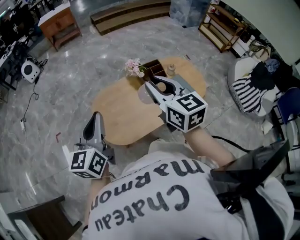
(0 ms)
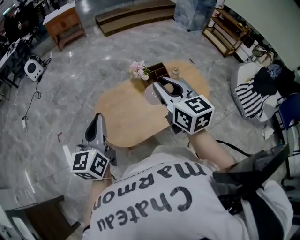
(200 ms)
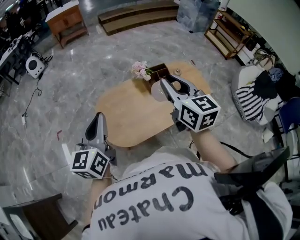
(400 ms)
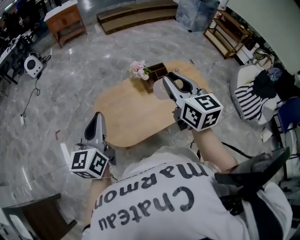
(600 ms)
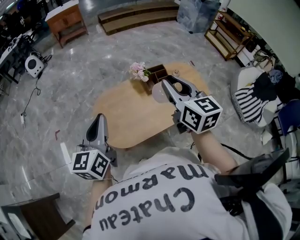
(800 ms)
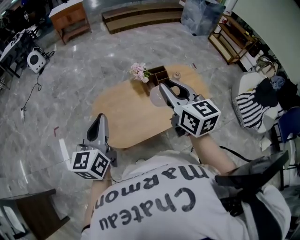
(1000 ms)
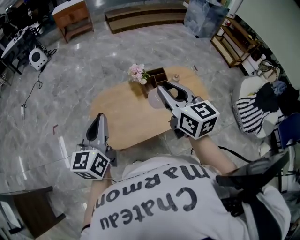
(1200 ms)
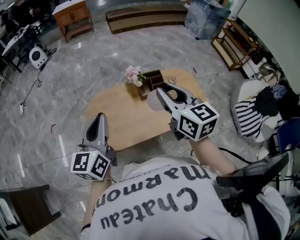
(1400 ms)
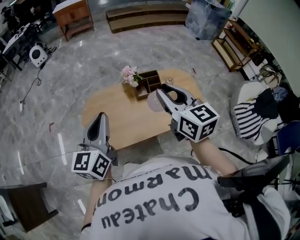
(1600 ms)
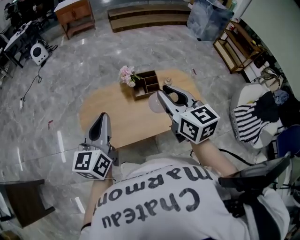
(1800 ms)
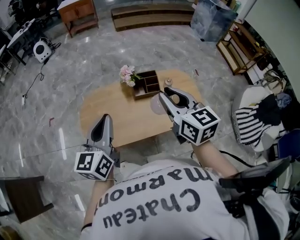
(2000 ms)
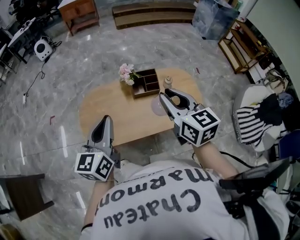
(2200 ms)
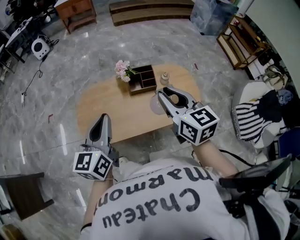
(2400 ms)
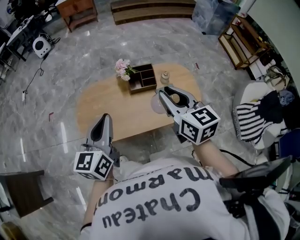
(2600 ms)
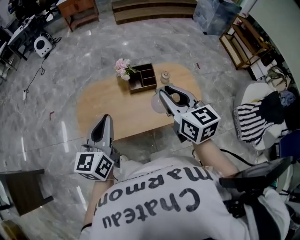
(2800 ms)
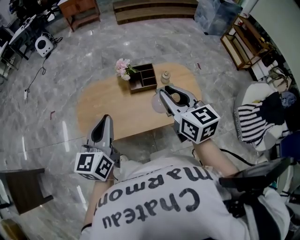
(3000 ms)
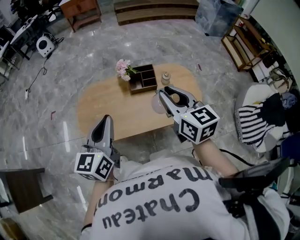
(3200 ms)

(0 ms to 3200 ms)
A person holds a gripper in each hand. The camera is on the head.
0 ms - 1600 ms: Both grippers move to the right, roughly 10 cm.
1600 ms - 3200 ms: Both grippers travel together to the right, roughly 10 cm.

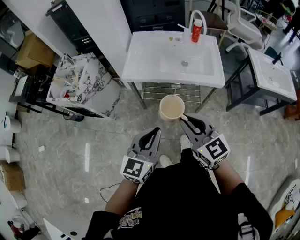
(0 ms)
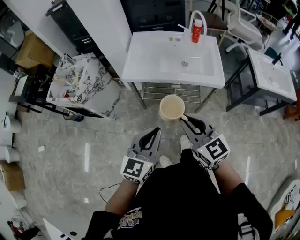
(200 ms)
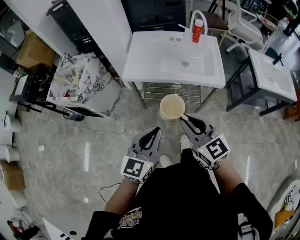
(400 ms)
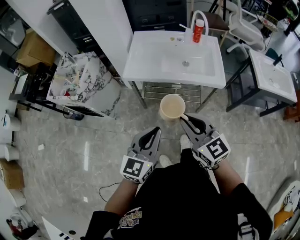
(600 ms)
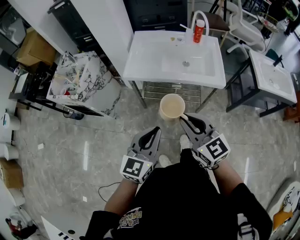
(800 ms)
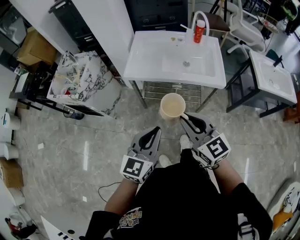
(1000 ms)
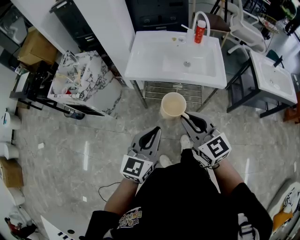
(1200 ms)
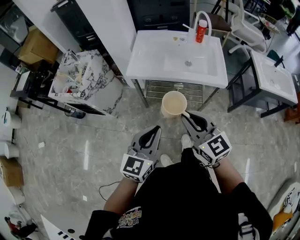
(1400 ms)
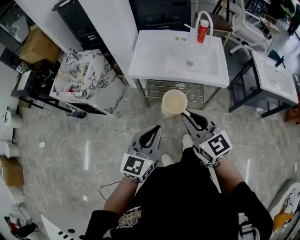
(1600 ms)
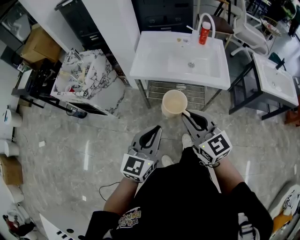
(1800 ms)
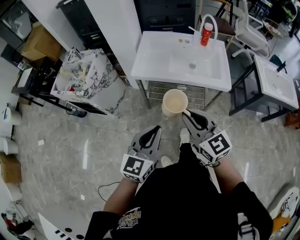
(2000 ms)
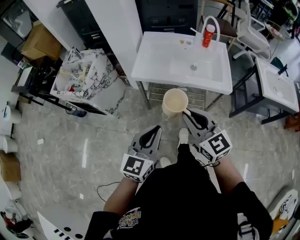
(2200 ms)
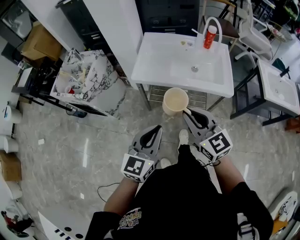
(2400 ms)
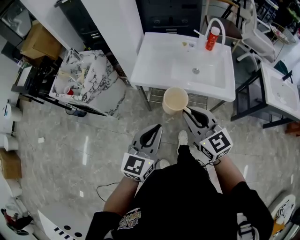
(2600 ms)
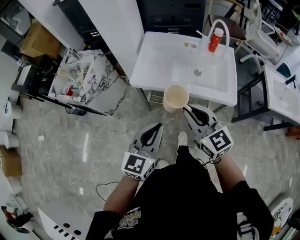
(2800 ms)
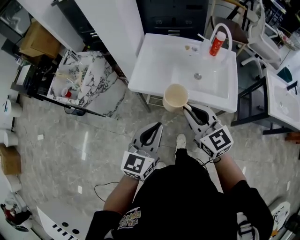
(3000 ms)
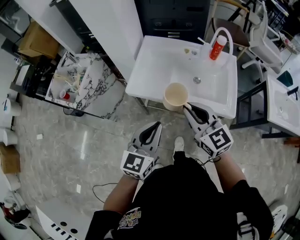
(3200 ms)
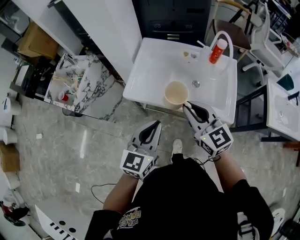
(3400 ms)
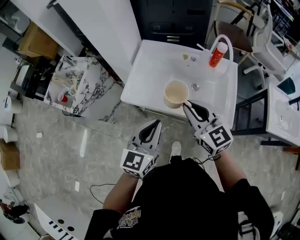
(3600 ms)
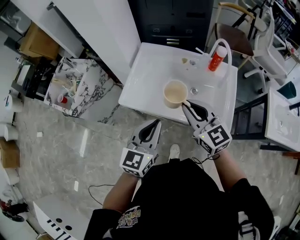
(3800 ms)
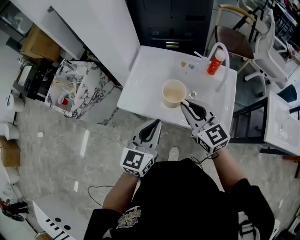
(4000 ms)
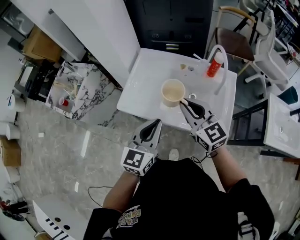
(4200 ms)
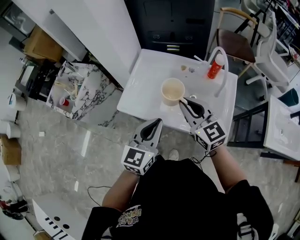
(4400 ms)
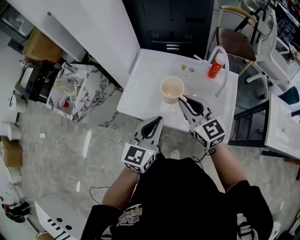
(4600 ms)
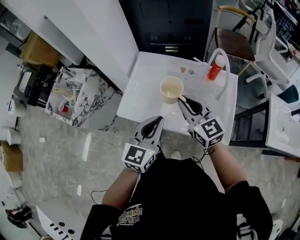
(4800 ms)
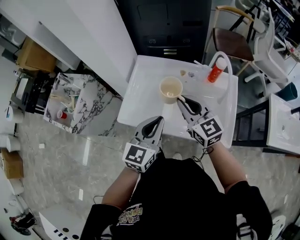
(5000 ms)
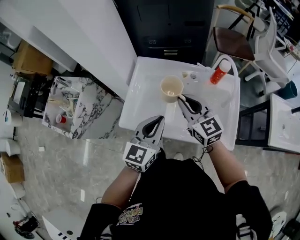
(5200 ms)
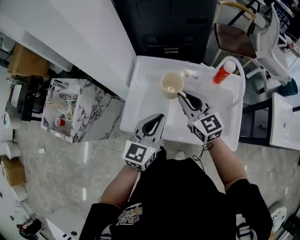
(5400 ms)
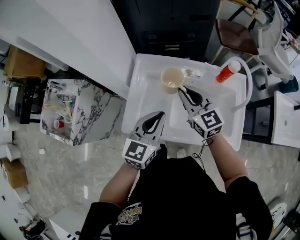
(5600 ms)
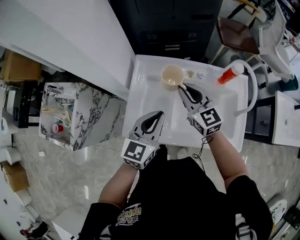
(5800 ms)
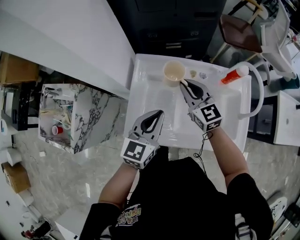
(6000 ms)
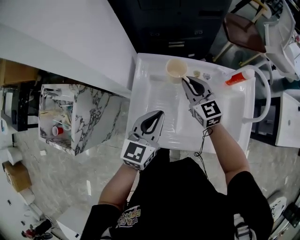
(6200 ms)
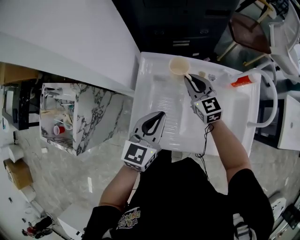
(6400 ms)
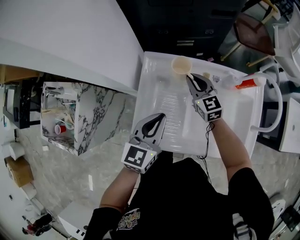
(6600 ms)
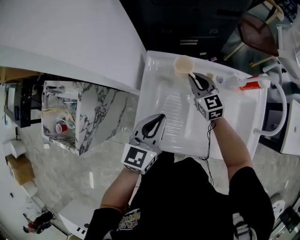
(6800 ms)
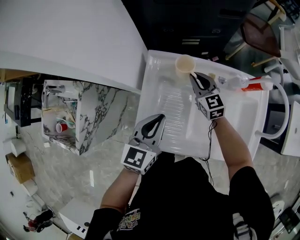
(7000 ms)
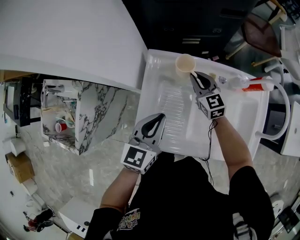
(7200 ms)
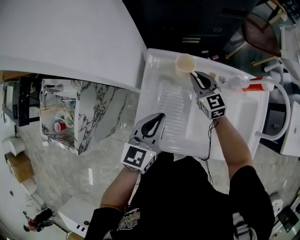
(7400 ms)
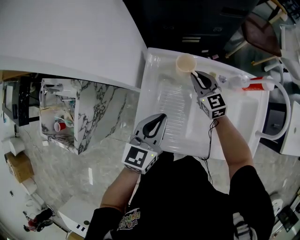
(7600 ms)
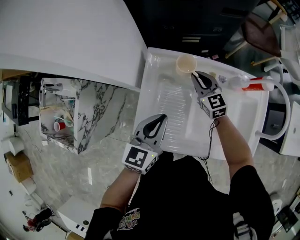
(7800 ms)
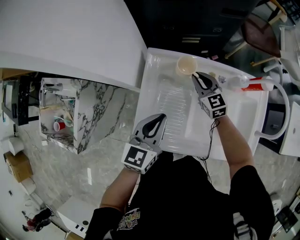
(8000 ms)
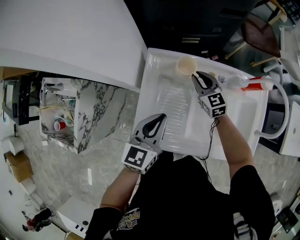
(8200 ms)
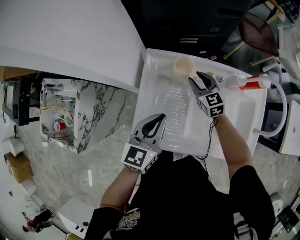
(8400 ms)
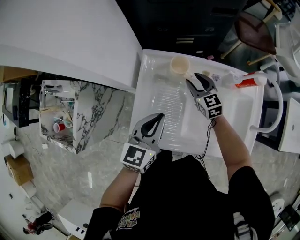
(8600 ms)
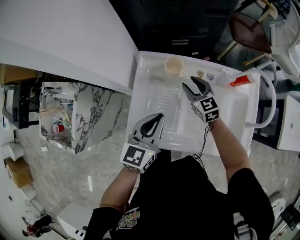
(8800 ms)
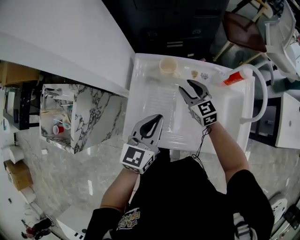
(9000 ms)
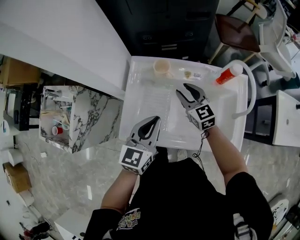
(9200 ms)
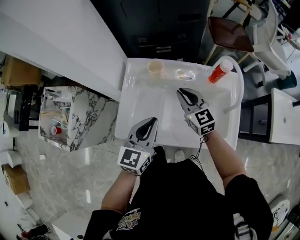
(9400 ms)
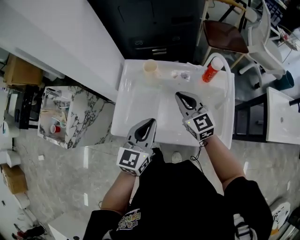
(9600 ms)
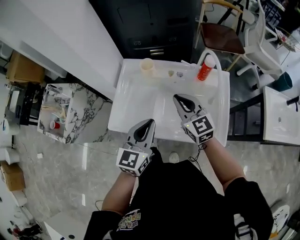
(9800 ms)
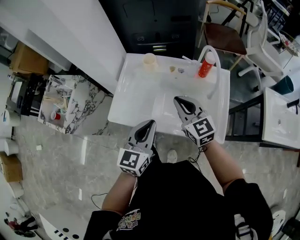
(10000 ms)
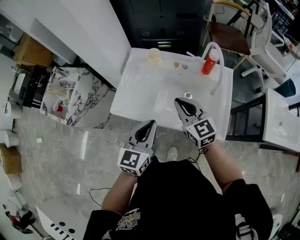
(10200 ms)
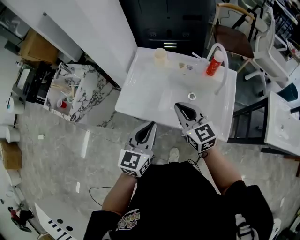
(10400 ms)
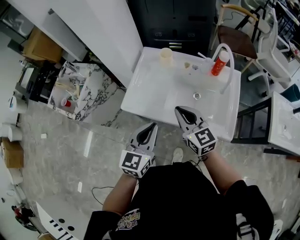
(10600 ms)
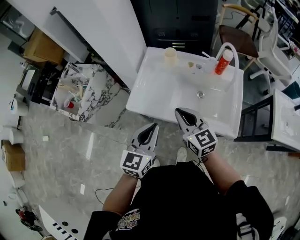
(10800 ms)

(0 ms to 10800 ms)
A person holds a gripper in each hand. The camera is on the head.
0 ms - 1600 ms: The grippers stay close to where they were, moving slightly.
1600 ms - 3000 ms: The grippers both shift forward by some 15 cm.
3000 ms - 4600 ms: Both grippers travel together forward and to the right, roughly 20 cm.
4600 ms - 6200 ms: The left gripper travels forward and to the left by some 20 cm. Meanwhile the right gripper goes roughly 30 cm forward and downward.
6200 ms - 7800 ms: The right gripper shifts roughly 10 cm downward and forward. Meanwhile the left gripper ends up about 5 cm from where it was.
7800 ms - 9200 ms: The left gripper shifts approximately 10 cm to the right and backward, while the right gripper shifts approximately 10 cm backward and upward, and opens.
9200 ms - 10800 ms: The right gripper travels backward and upward by approximately 30 cm, and closes up. The left gripper moves backward, some 20 cm.

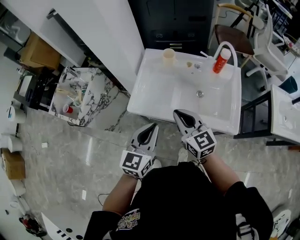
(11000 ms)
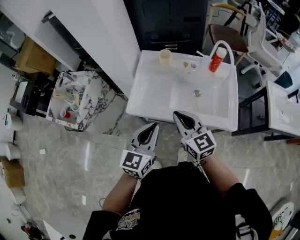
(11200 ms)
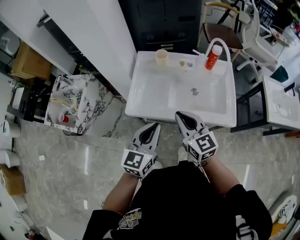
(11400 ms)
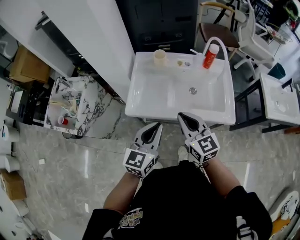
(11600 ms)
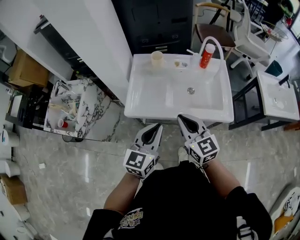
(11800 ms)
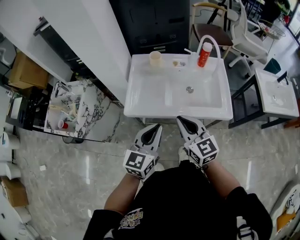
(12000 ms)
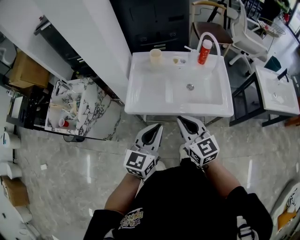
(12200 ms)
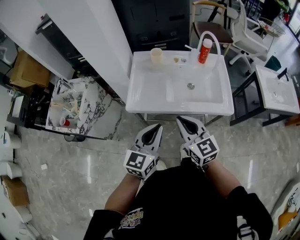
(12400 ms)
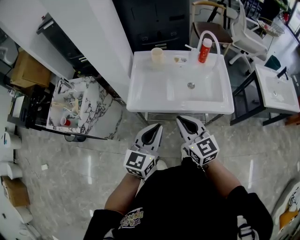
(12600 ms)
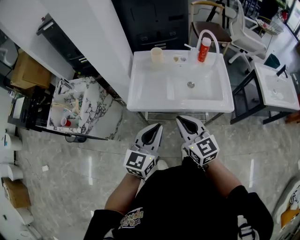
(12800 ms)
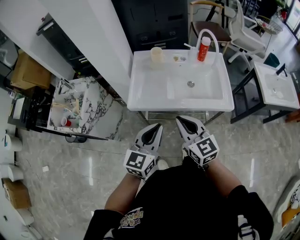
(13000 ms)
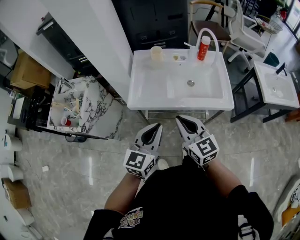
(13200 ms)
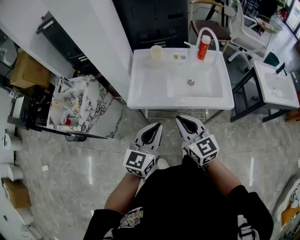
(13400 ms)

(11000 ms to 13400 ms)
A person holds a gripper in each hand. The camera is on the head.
11000 ms - 12200 ms: The right gripper goes approximately 10 cm backward; the left gripper shifts by some 5 cm.
12200 ms - 13400 ms: The grippers make only small movements.

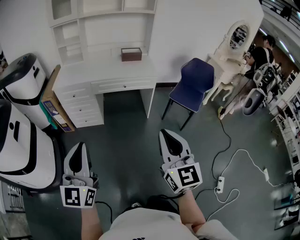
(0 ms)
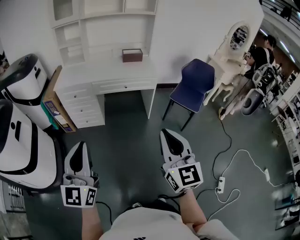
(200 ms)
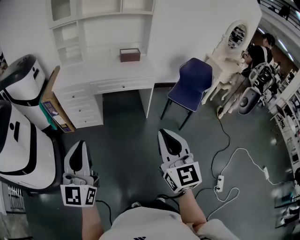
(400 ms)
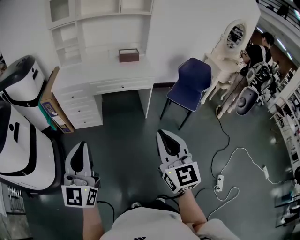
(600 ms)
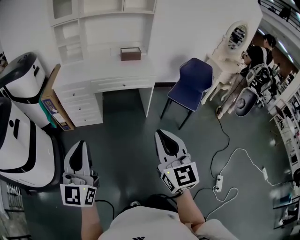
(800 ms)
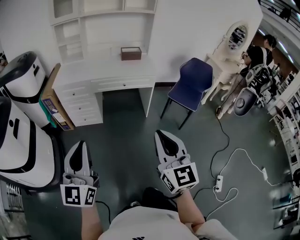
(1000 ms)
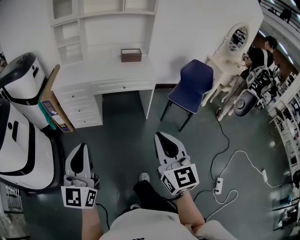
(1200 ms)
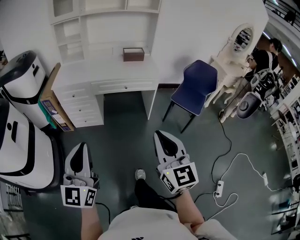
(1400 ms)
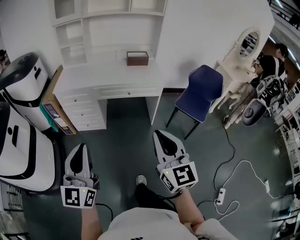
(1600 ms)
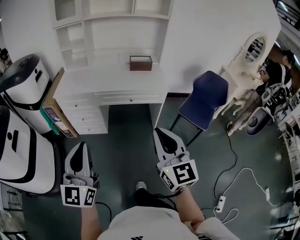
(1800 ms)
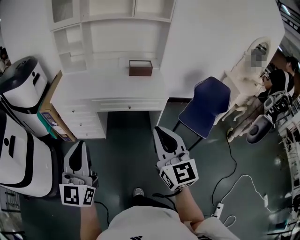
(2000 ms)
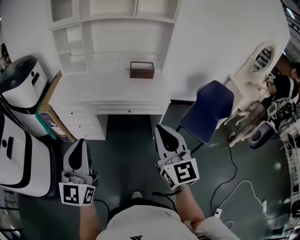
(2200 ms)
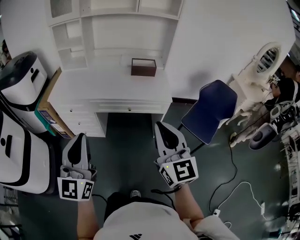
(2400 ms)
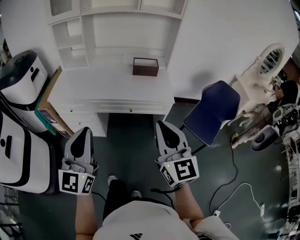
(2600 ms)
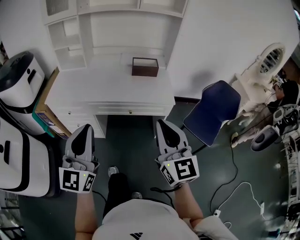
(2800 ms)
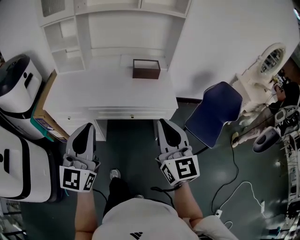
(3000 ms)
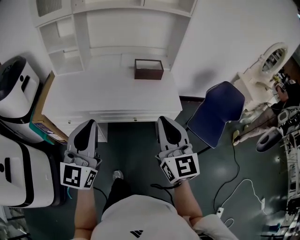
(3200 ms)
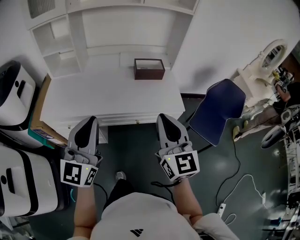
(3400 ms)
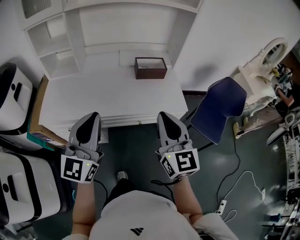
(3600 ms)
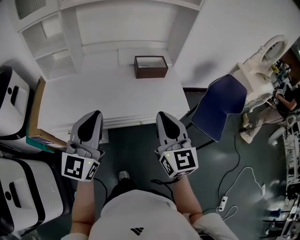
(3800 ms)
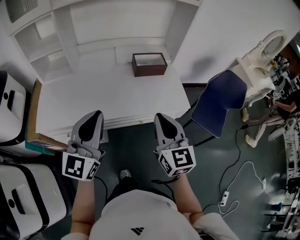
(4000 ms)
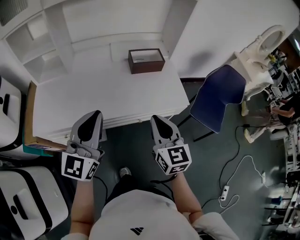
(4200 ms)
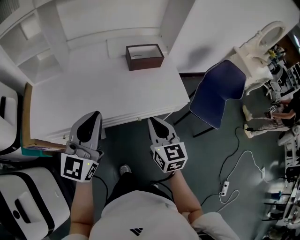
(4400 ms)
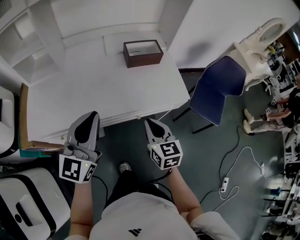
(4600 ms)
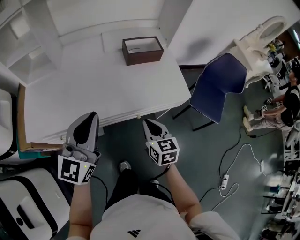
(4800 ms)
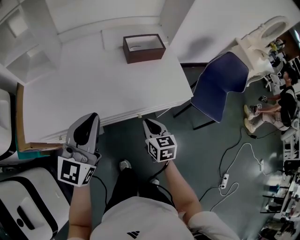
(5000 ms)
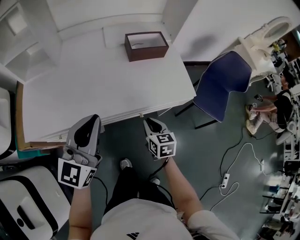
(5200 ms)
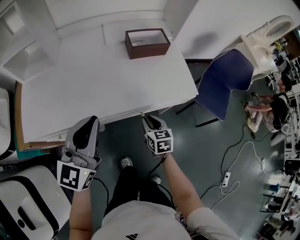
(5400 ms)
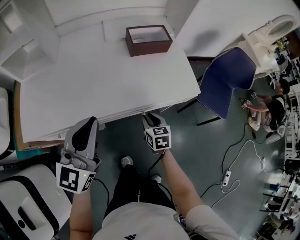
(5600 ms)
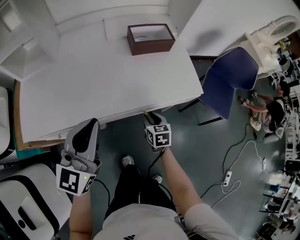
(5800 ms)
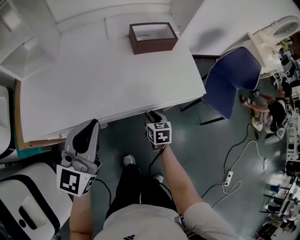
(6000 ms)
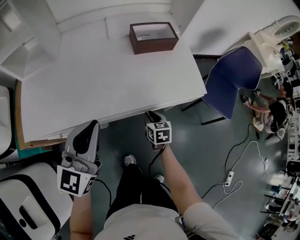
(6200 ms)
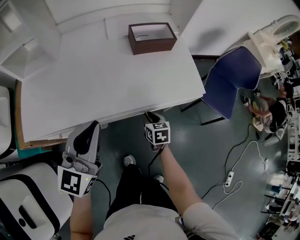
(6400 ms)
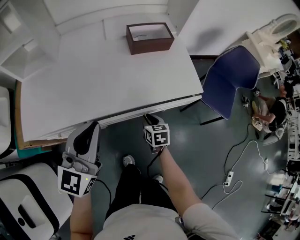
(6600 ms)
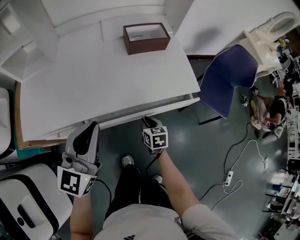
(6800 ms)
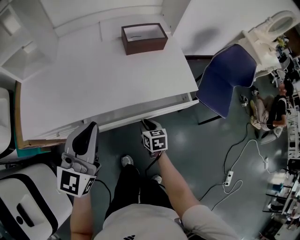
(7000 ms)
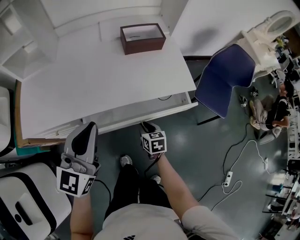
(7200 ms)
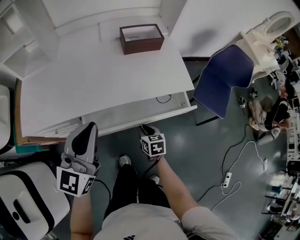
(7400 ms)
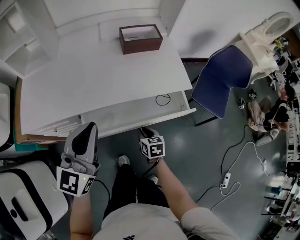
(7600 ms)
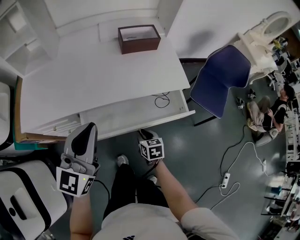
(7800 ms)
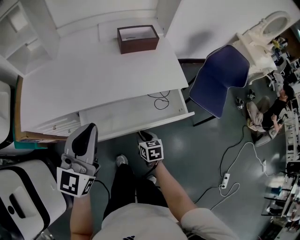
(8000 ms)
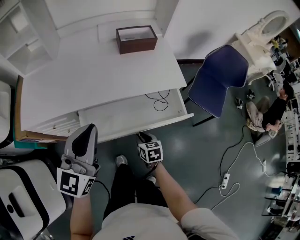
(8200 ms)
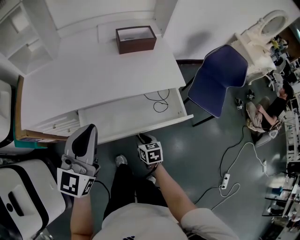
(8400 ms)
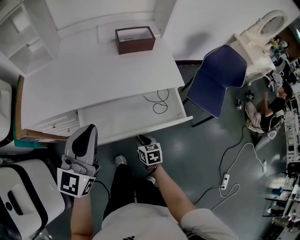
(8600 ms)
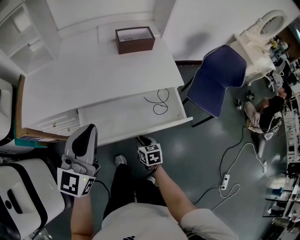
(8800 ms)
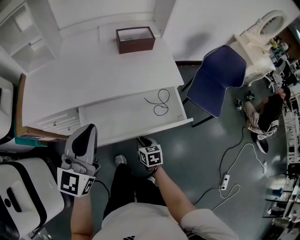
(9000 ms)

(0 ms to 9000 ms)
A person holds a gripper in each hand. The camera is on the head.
0 ms - 1600 ms: Both grippers move forward, roughly 10 cm.
1600 ms - 3000 ms: The grippers both shift forward by about 30 cm.
3000 ms - 4400 ms: The left gripper moves forward, roughly 20 cm, and swivels about 20 degrees; the right gripper goes approximately 25 cm forward, downward and to the left, and swivels approximately 30 degrees.
4400 ms - 6000 ms: The left gripper moves downward, approximately 5 cm. Meanwhile the right gripper goes roughly 25 cm downward, rotates approximately 30 degrees, and opens up.
6000 ms - 7600 ms: The right gripper moves backward, roughly 10 cm; the left gripper travels backward by roughly 5 cm.
7600 ms - 9000 ms: The grippers both shift backward by some 5 cm.
